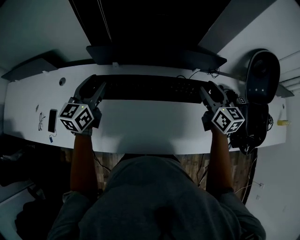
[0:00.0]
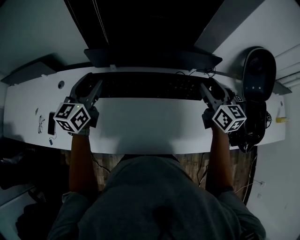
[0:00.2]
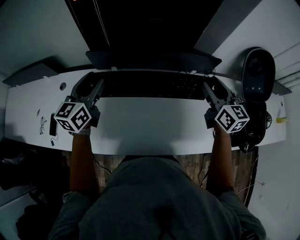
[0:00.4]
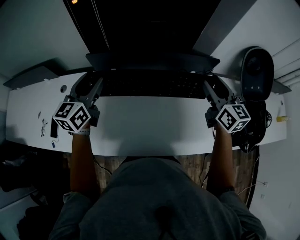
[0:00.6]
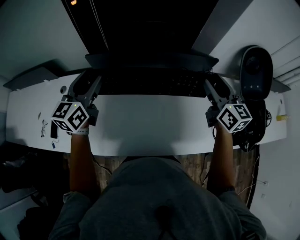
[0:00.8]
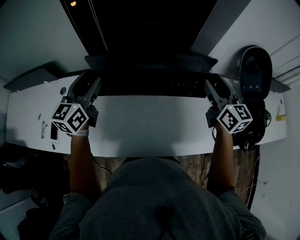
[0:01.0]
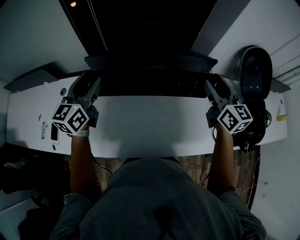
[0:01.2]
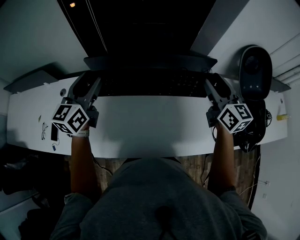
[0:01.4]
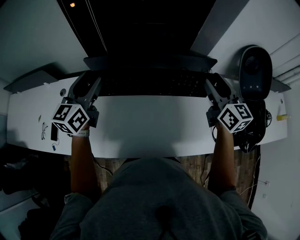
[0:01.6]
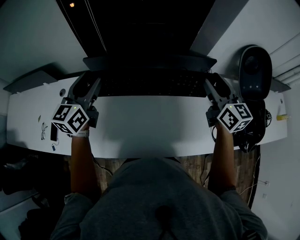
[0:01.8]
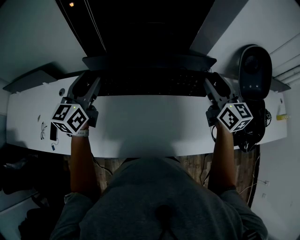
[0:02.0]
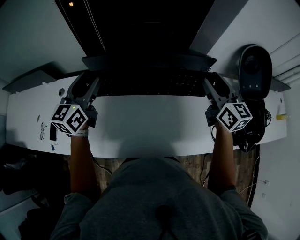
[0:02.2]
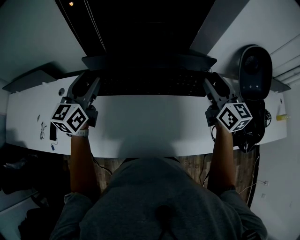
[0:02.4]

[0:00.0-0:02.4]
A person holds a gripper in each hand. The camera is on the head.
0:00.0 to 0:01.2: The two grippers go about 10 cm upward.
0:01.2 to 0:02.4: The two grippers keep their place.

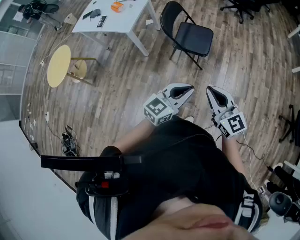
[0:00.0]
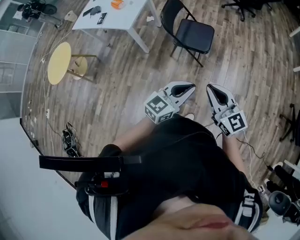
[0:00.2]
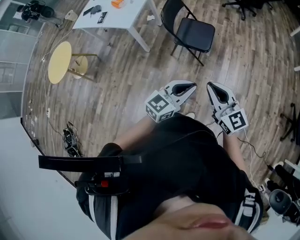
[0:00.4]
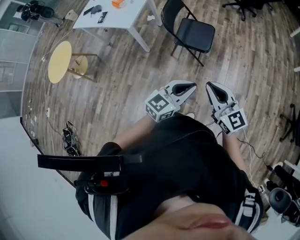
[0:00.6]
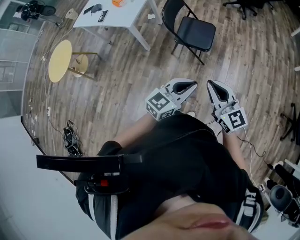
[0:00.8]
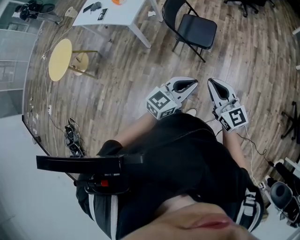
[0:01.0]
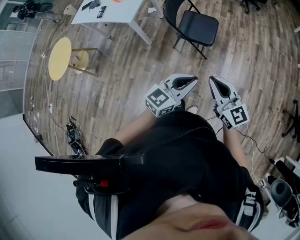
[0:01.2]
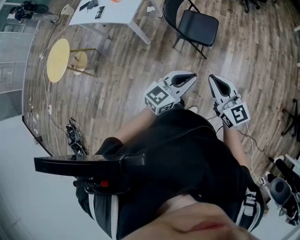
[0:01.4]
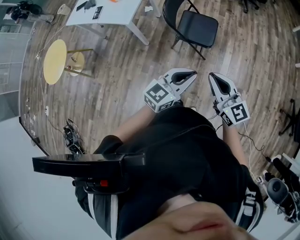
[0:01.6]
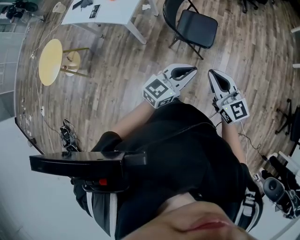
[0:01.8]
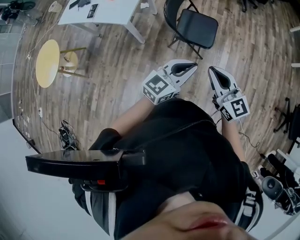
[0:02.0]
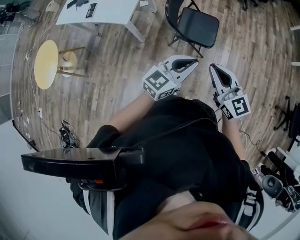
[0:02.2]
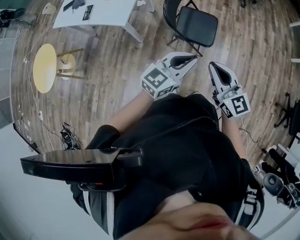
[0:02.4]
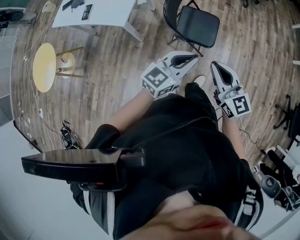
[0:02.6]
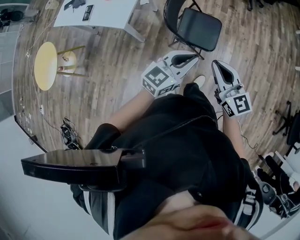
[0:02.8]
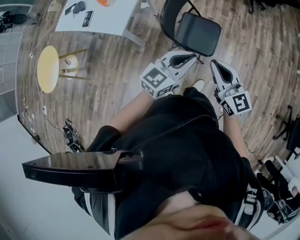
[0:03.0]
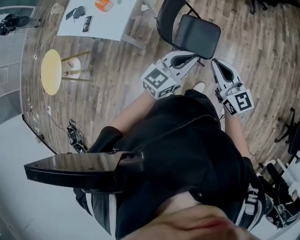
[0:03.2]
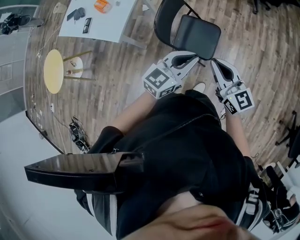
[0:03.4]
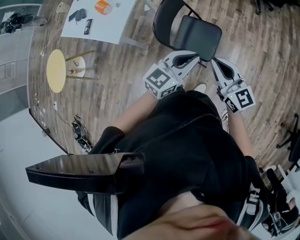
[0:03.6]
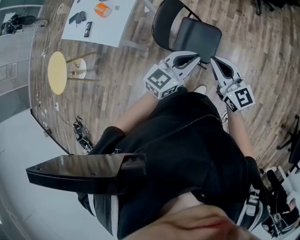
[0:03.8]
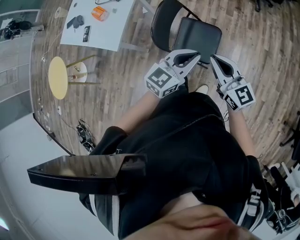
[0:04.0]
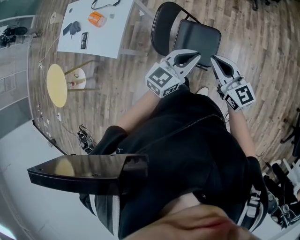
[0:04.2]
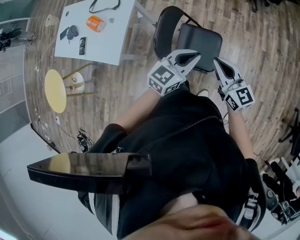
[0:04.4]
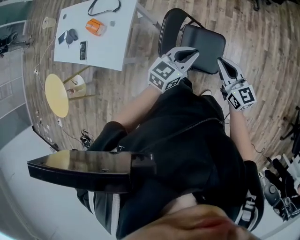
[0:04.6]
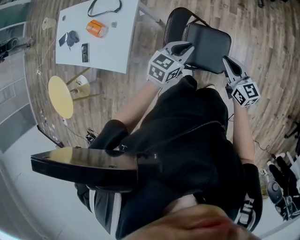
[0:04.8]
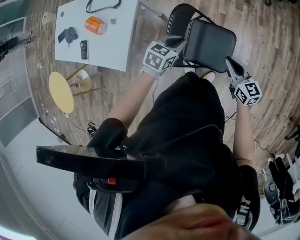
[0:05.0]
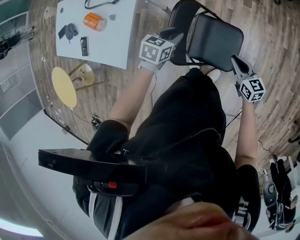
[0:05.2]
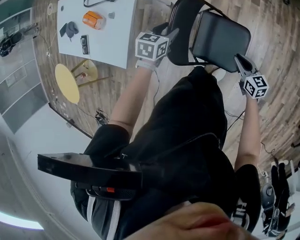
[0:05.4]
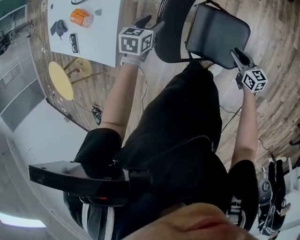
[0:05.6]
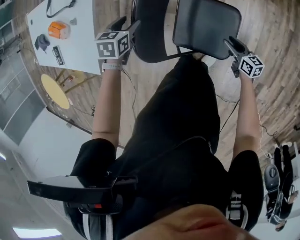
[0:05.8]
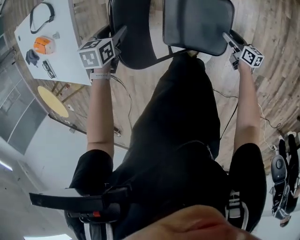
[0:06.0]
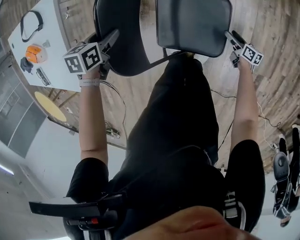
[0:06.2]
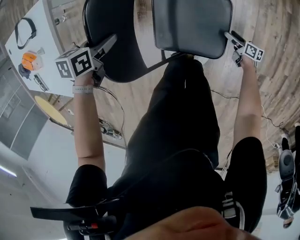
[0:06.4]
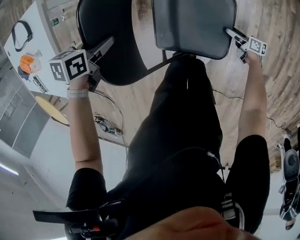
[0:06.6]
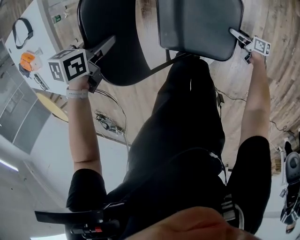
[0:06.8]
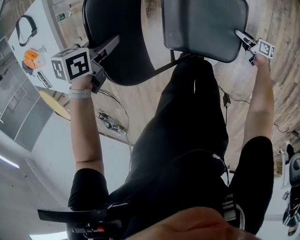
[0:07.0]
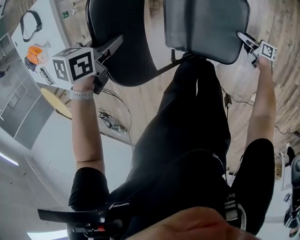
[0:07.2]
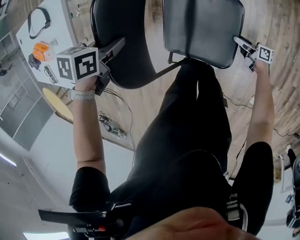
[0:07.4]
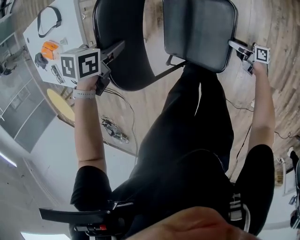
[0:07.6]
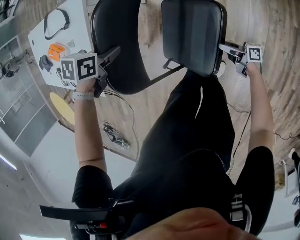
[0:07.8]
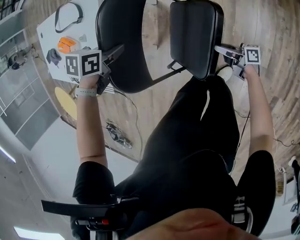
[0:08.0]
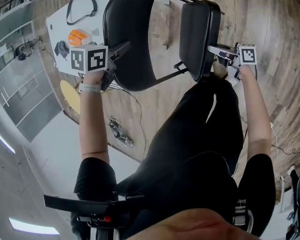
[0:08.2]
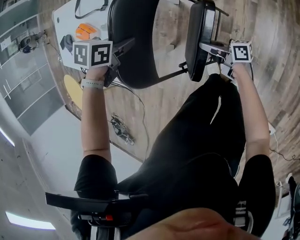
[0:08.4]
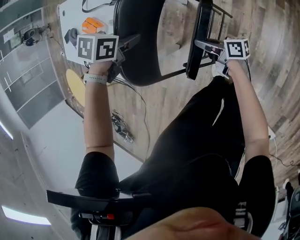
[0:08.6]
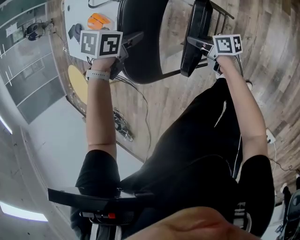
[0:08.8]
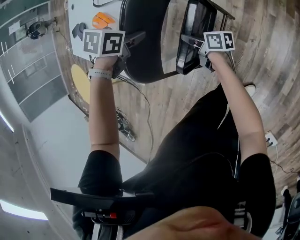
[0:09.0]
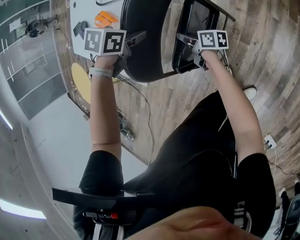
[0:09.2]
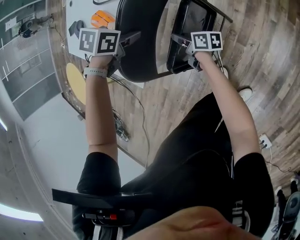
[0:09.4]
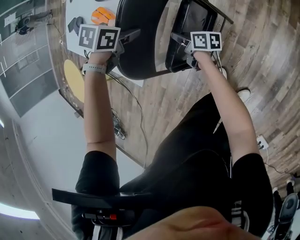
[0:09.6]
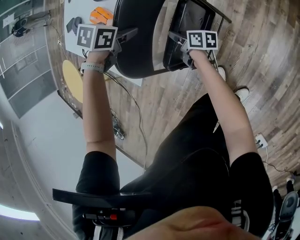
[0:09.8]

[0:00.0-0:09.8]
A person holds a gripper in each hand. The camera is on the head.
0:00.0 to 0:01.4: Both grippers move forward, some 5 cm.
0:01.4 to 0:02.8: The grippers both shift forward by approximately 20 cm.
0:02.8 to 0:04.2: The right gripper moves forward, some 20 cm. The left gripper shifts roughly 25 cm forward and to the right.
0:04.2 to 0:05.6: The right gripper shifts roughly 40 cm downward and forward, and changes its angle by about 30 degrees; the left gripper moves downward, to the left and forward, roughly 50 cm, tilts its fingers some 50 degrees downward, and opens up.
0:05.6 to 0:07.0: The right gripper travels downward by some 35 cm, rotates around the line of its fingers by roughly 40 degrees, clockwise from behind, and opens. The left gripper heads downward, covering some 10 cm, changes its angle by some 30 degrees, and closes its fingers.
0:07.0 to 0:08.4: The left gripper moves upward, some 15 cm. The right gripper moves roughly 50 cm, swivels about 30 degrees, and closes.
0:08.4 to 0:09.8: The right gripper changes place by roughly 25 cm. Meanwhile the left gripper ends up some 15 cm from where it was.

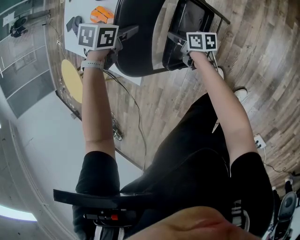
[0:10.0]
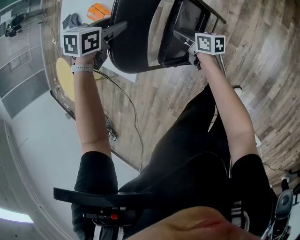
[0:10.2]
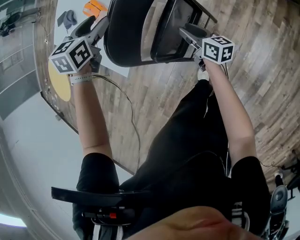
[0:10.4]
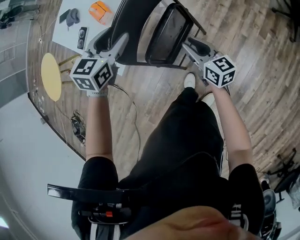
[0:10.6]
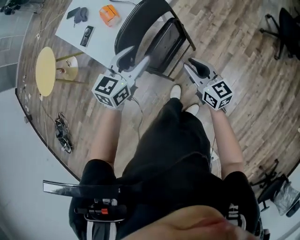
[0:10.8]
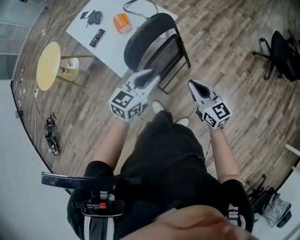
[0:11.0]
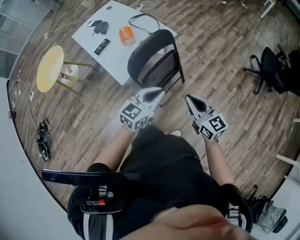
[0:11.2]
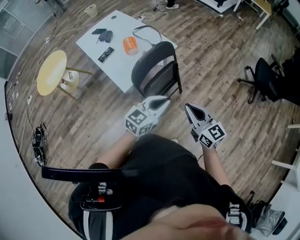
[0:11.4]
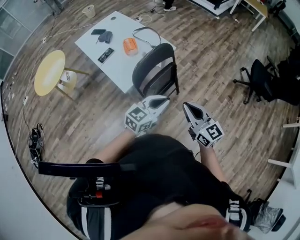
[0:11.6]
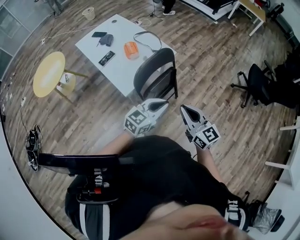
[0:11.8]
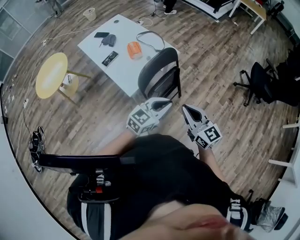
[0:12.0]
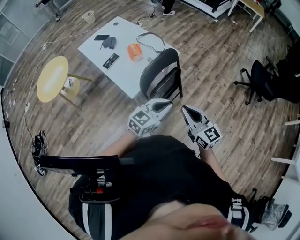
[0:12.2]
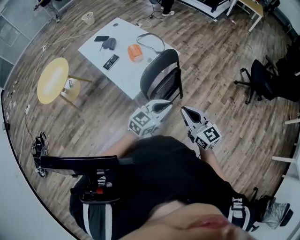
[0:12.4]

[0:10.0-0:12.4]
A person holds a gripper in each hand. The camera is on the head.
0:10.0 to 0:11.2: The left gripper shifts by about 40 cm, angles its fingers upward, by approximately 60 degrees, and closes its fingers. The right gripper is displaced upward by roughly 40 cm, and rotates around the line of its fingers by approximately 60 degrees, counterclockwise from behind.
0:11.2 to 0:12.4: The left gripper shifts by about 5 cm, while the right gripper is displaced to the left and upward by approximately 10 cm.

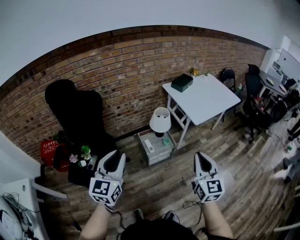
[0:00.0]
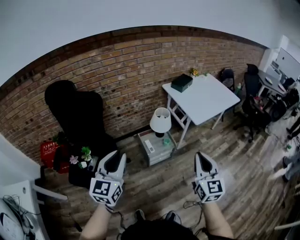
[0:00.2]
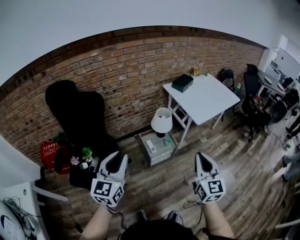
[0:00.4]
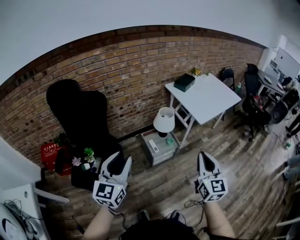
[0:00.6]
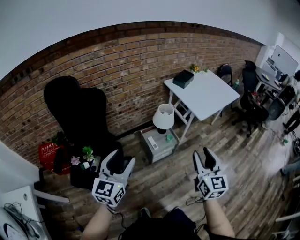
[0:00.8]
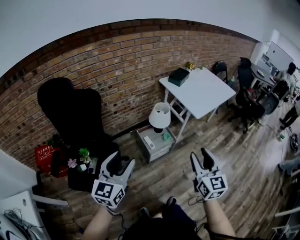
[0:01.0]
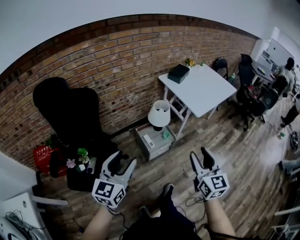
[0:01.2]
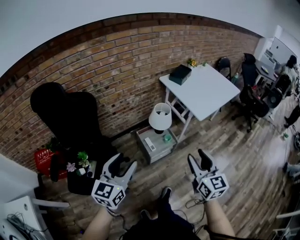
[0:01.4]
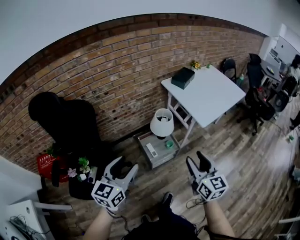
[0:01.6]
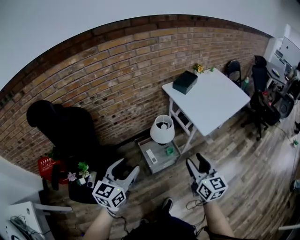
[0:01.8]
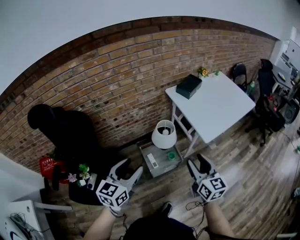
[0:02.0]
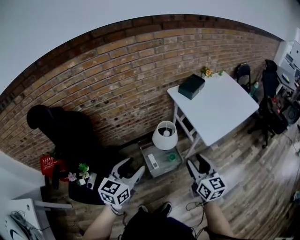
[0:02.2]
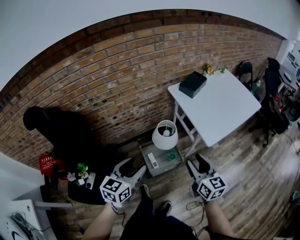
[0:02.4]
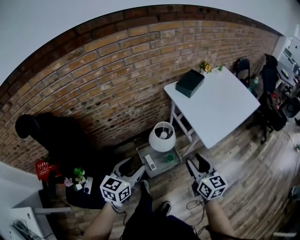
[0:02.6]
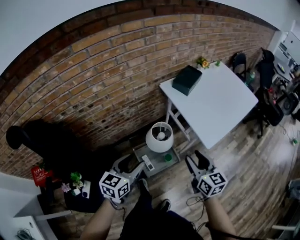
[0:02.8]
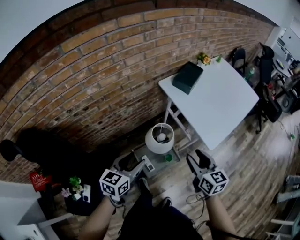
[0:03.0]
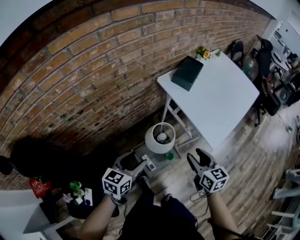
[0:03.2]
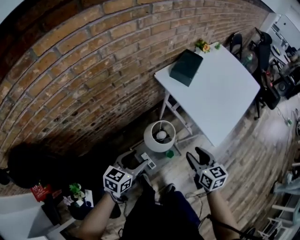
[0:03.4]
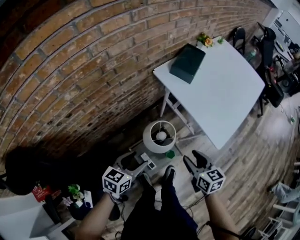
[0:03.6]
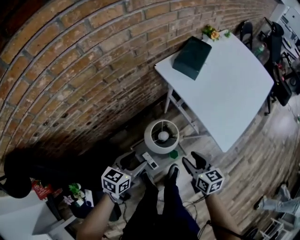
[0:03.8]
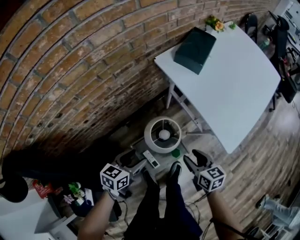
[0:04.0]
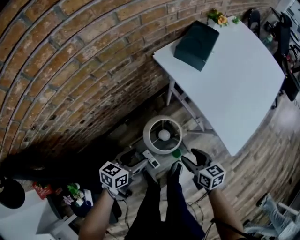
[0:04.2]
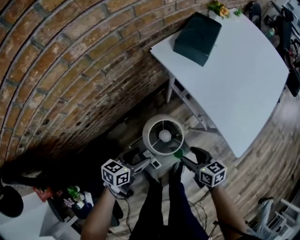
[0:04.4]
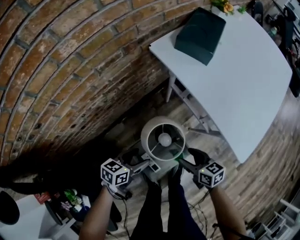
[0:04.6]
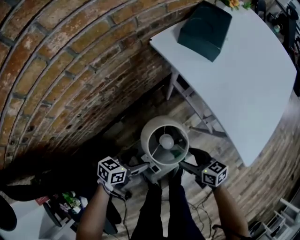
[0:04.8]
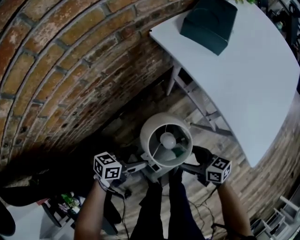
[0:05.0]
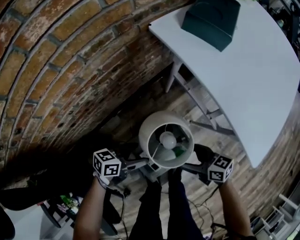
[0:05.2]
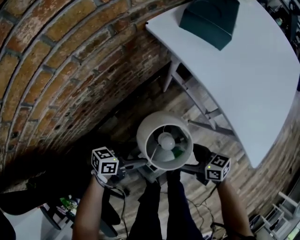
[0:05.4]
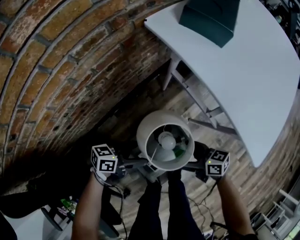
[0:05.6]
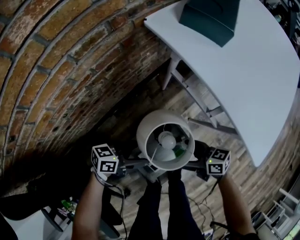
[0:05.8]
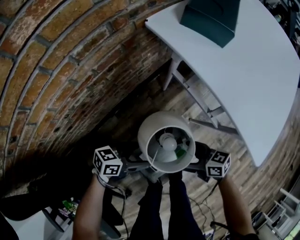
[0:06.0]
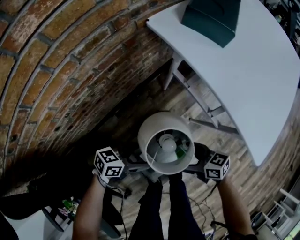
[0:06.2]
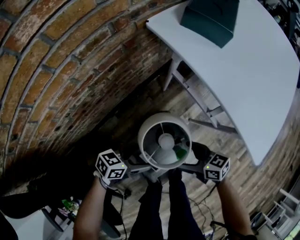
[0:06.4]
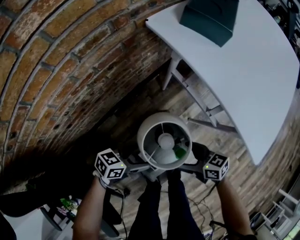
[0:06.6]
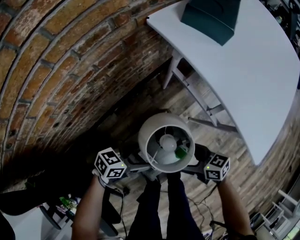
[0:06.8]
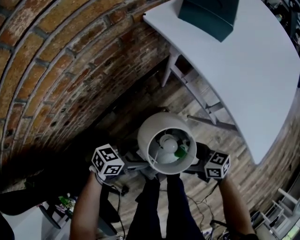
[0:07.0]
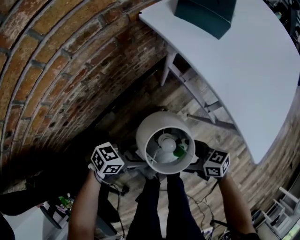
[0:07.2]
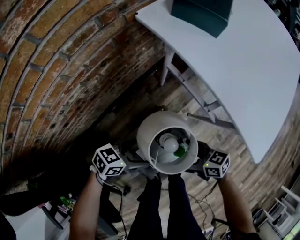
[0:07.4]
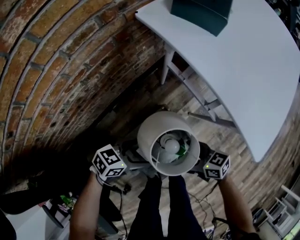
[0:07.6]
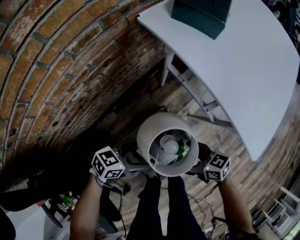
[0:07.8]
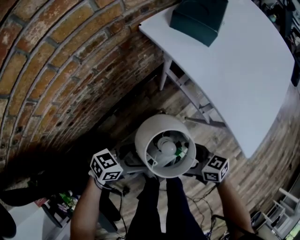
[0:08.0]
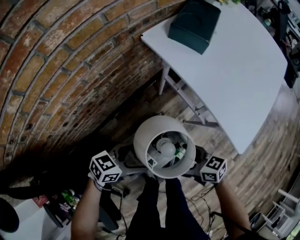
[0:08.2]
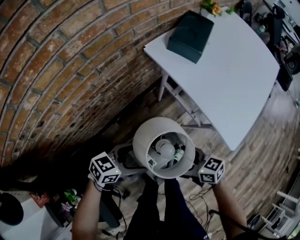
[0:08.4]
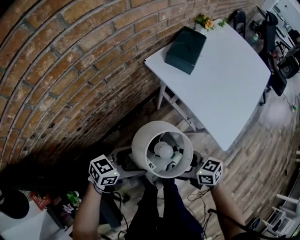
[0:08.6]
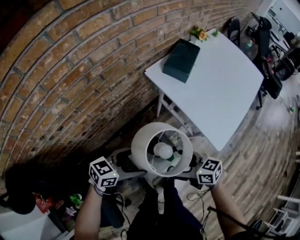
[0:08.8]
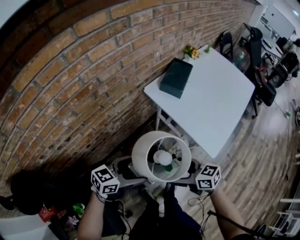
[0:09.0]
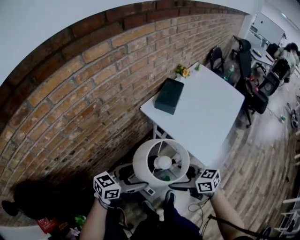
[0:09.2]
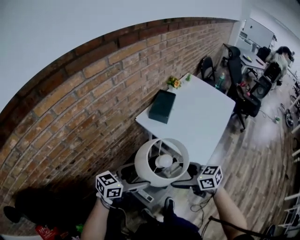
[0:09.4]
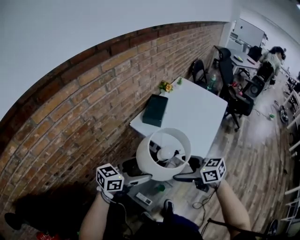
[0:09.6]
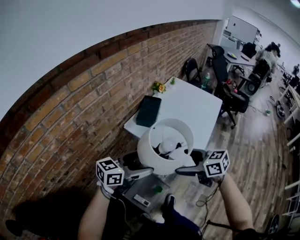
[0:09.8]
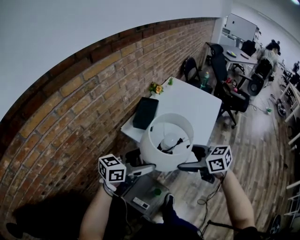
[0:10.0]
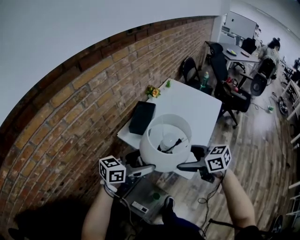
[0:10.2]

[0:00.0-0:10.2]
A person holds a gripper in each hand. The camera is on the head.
0:00.0 to 0:01.4: The right gripper goes roughly 10 cm to the left, forward and downward, and opens; the left gripper travels forward and downward by roughly 10 cm, and opens up.
0:01.4 to 0:03.0: The grippers both shift forward by approximately 40 cm. The left gripper rotates about 20 degrees.
0:03.0 to 0:04.4: The right gripper moves downward, some 30 cm, and changes its angle by some 30 degrees. Meanwhile the left gripper travels downward and forward by approximately 30 cm, and rotates some 30 degrees.
0:04.4 to 0:05.8: The grippers both shift downward by about 10 cm. The left gripper swivels approximately 30 degrees, while the right gripper swivels approximately 20 degrees, and opens its fingers.
0:05.8 to 0:07.2: The grippers move only a little.
0:07.2 to 0:08.8: The grippers both shift upward by some 30 cm.
0:08.8 to 0:10.2: The grippers both shift upward by roughly 25 cm.
